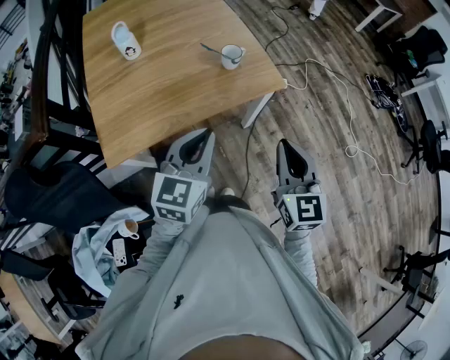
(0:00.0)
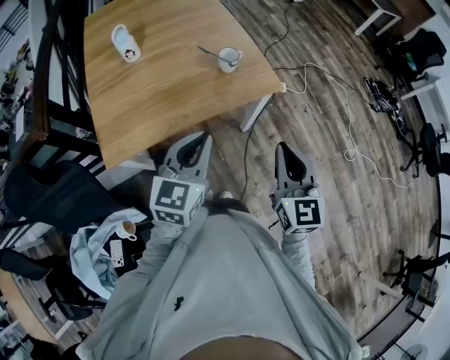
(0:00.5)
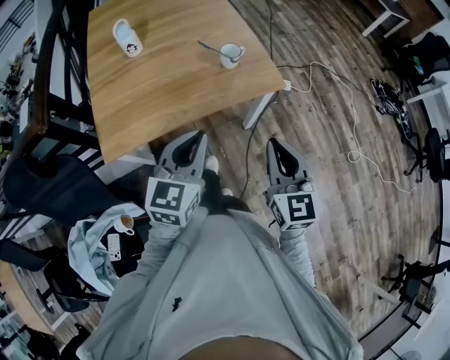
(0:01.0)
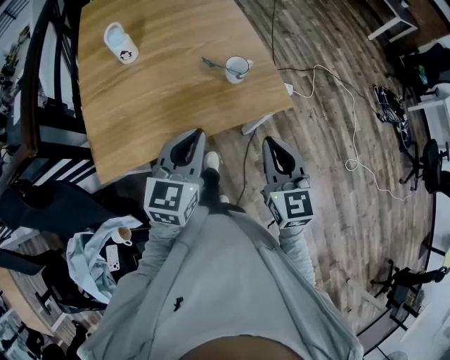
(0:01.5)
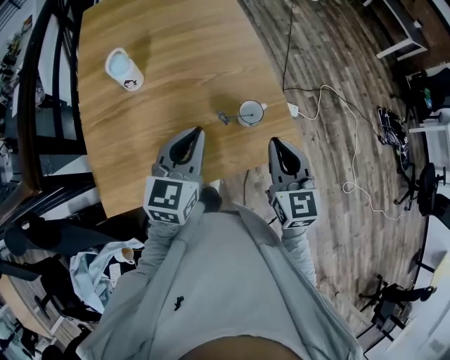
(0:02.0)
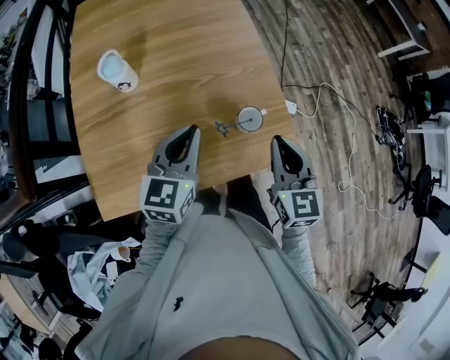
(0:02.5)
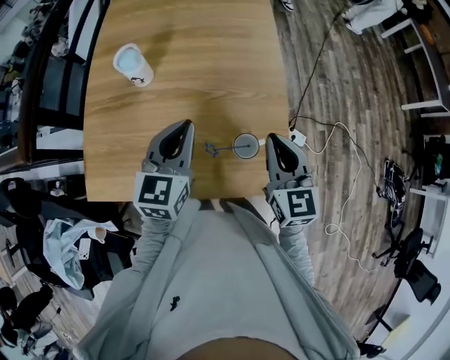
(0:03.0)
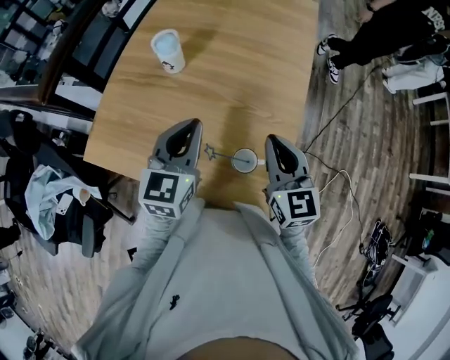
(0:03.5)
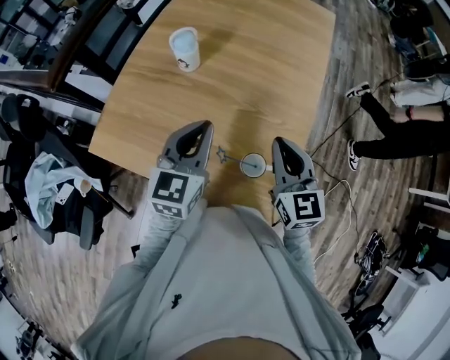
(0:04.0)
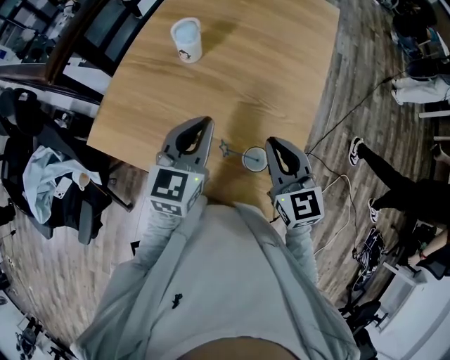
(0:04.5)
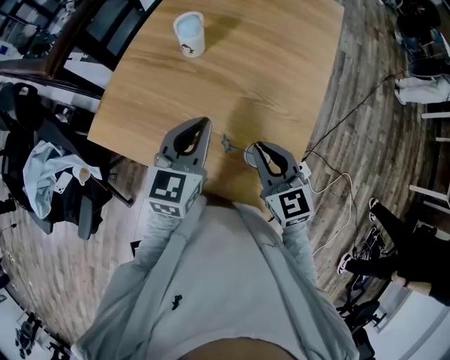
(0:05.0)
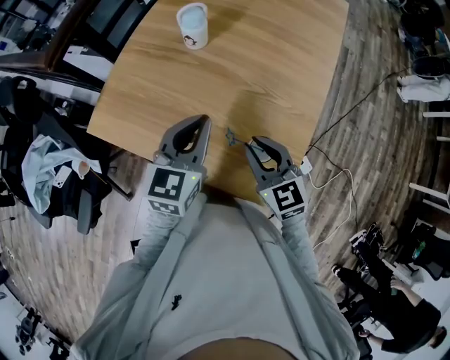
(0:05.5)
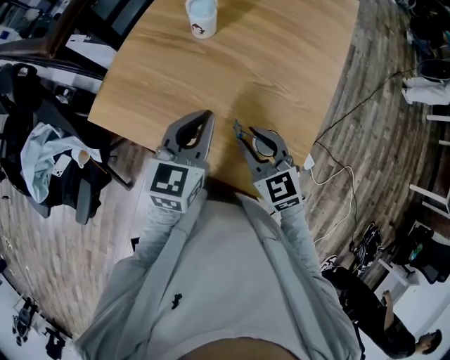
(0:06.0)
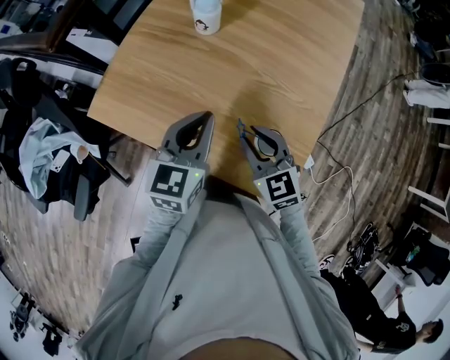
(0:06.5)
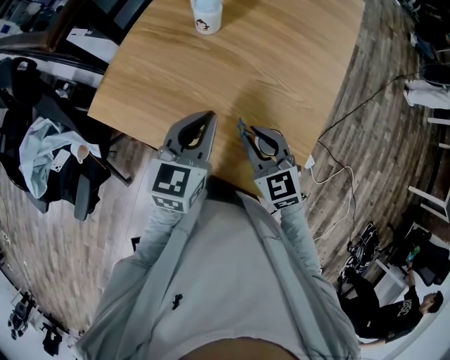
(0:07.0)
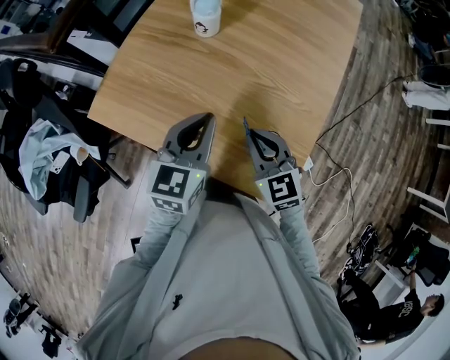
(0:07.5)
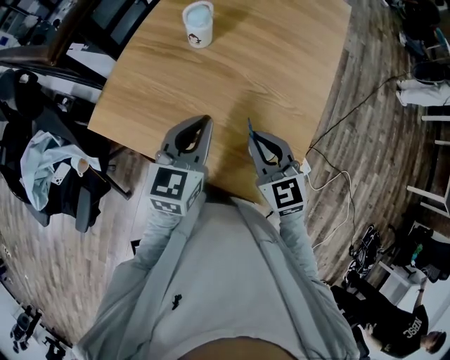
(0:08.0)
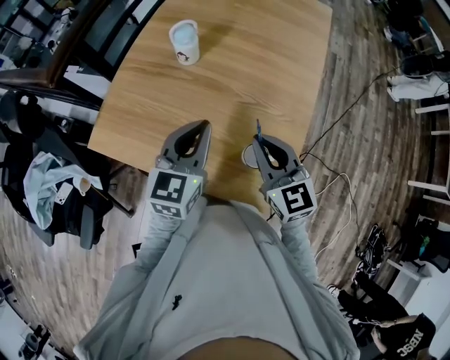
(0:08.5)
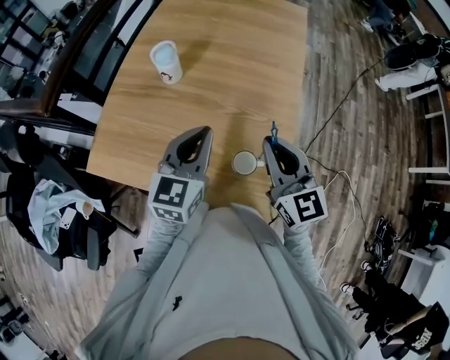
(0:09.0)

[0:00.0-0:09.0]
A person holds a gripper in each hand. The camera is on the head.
0:00.0 to 0:02.0: The two grippers go approximately 25 cm forward.
0:02.0 to 0:04.5: The left gripper changes place by approximately 5 cm, and swivels roughly 40 degrees; the right gripper changes place by roughly 15 cm, and changes its angle by approximately 50 degrees.
0:04.5 to 0:07.0: The left gripper moves roughly 5 cm. The right gripper shifts about 15 cm downward and to the left.
0:07.0 to 0:09.0: The right gripper travels upward and to the right by some 20 cm, and turns by roughly 30 degrees, while the left gripper heads to the right and upward, covering some 10 cm.

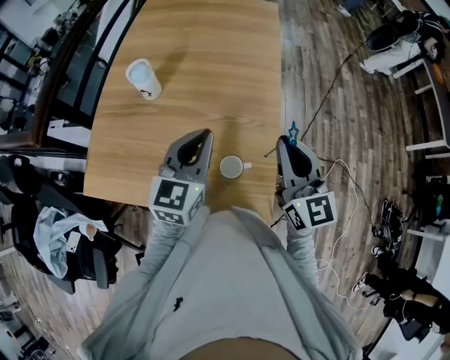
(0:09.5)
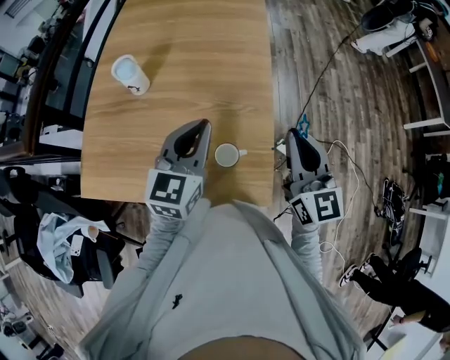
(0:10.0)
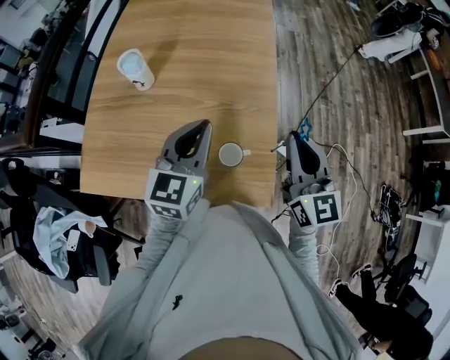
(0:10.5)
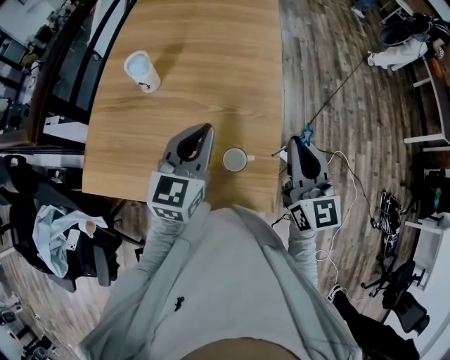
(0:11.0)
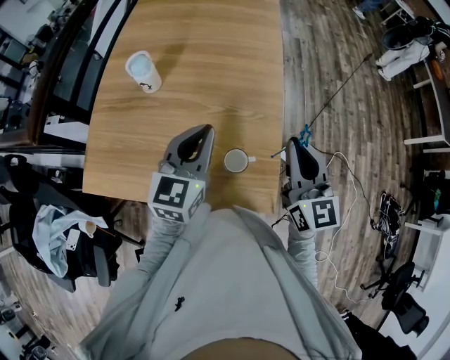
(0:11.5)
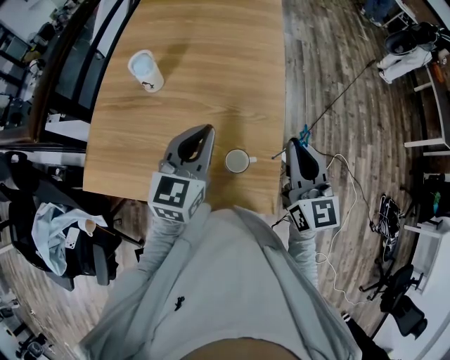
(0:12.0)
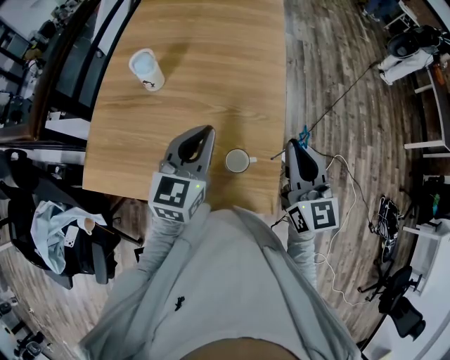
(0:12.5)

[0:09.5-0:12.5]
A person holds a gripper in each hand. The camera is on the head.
0:09.5 to 0:12.5: The grippers stay close to where they were, moving slightly.

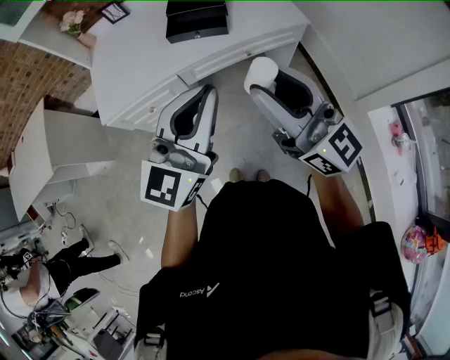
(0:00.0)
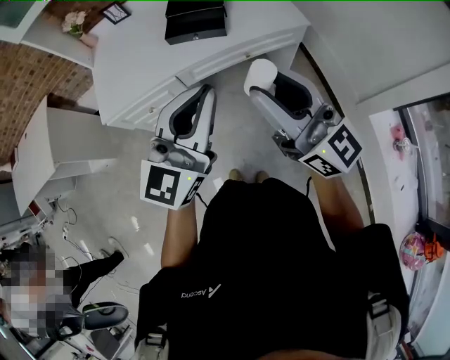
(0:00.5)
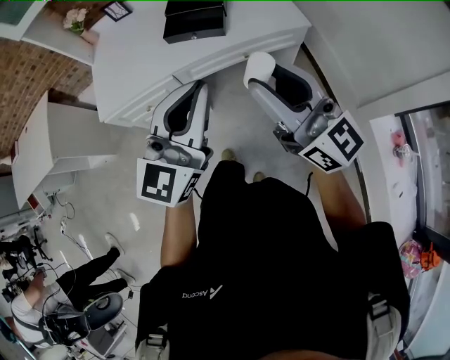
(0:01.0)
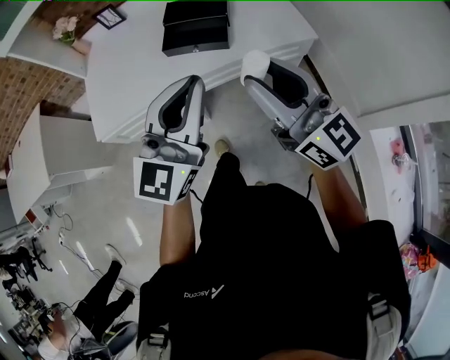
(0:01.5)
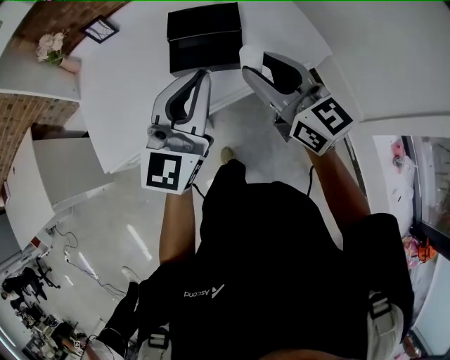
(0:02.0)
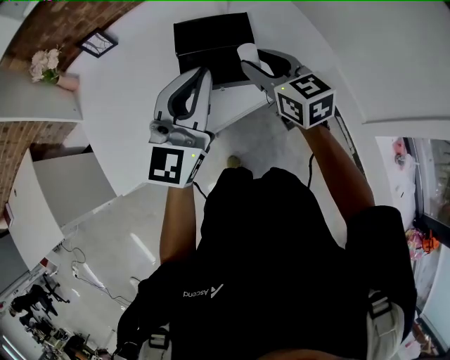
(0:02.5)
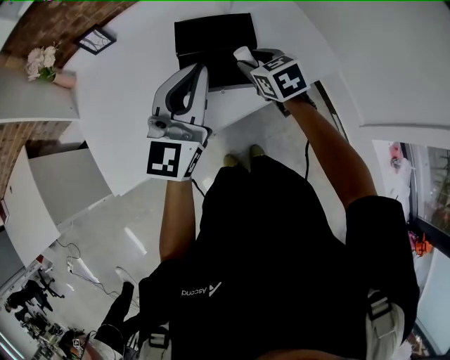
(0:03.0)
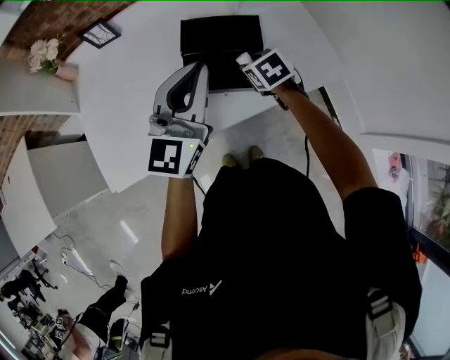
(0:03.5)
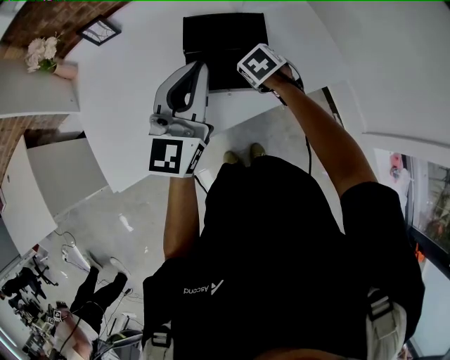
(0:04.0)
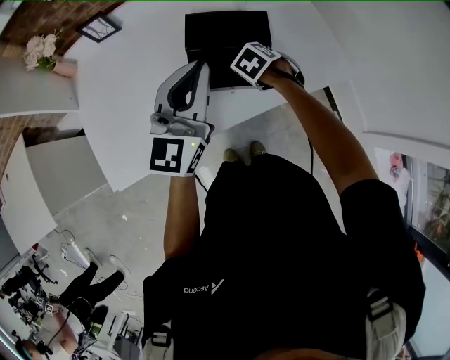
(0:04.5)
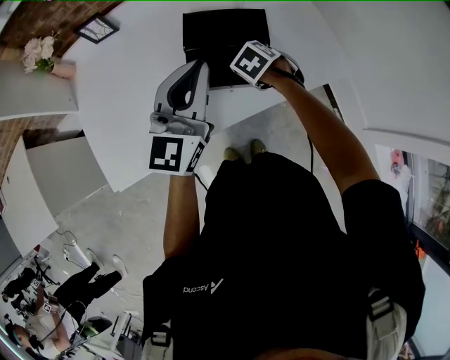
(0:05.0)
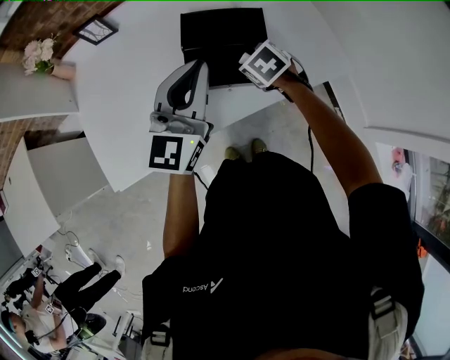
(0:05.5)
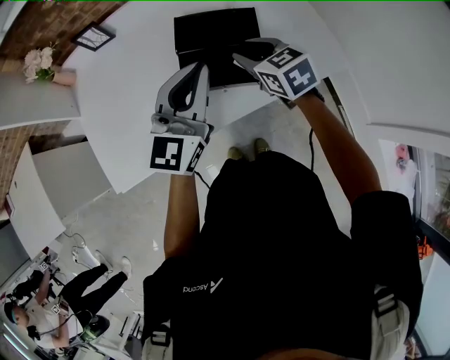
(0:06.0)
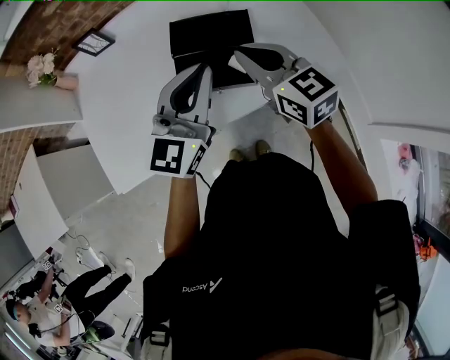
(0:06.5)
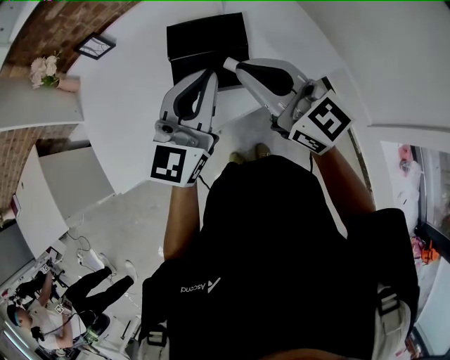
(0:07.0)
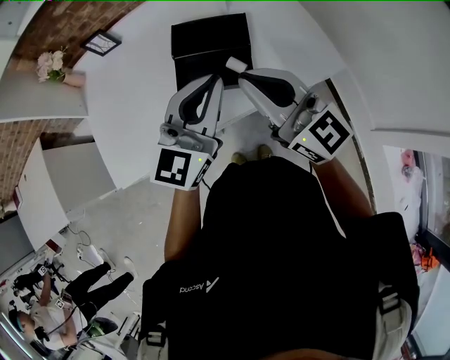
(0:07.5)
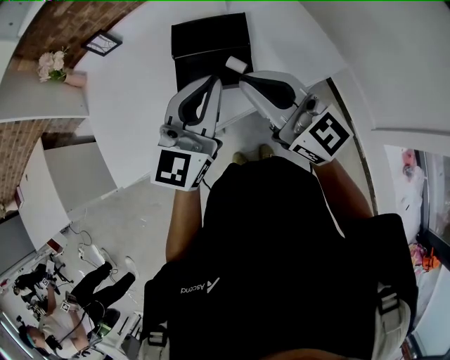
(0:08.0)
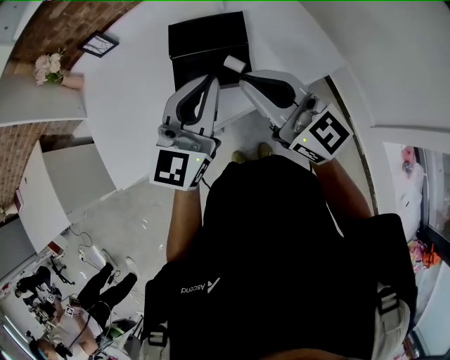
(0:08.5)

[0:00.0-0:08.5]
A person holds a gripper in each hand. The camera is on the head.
0:00.0 to 0:02.0: Both grippers move forward, approximately 30 cm. The right gripper swivels about 20 degrees.
0:02.0 to 0:04.0: The right gripper is displaced downward and forward by about 35 cm, and points its fingers about 70 degrees further downward. The left gripper goes roughly 15 cm forward and to the left.
0:04.0 to 0:06.5: The right gripper moves upward, roughly 20 cm, angles its fingers upward, by roughly 60 degrees, and closes. Meanwhile the left gripper shifts by approximately 5 cm.
0:06.5 to 0:08.5: The right gripper is displaced backward and upward by some 10 cm, and changes its angle by roughly 20 degrees; the left gripper changes place by approximately 5 cm.

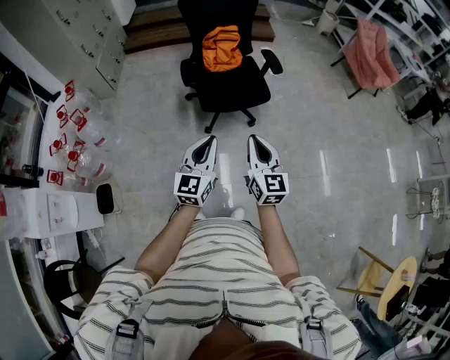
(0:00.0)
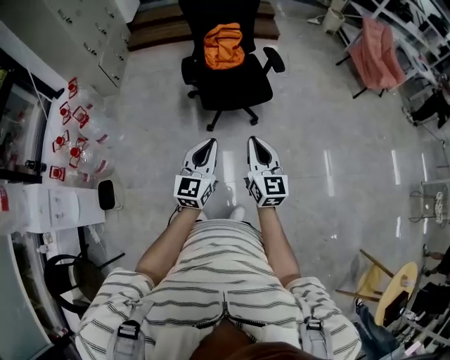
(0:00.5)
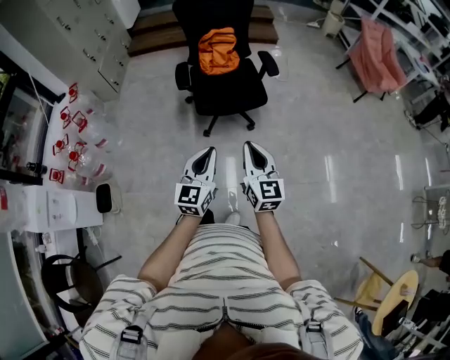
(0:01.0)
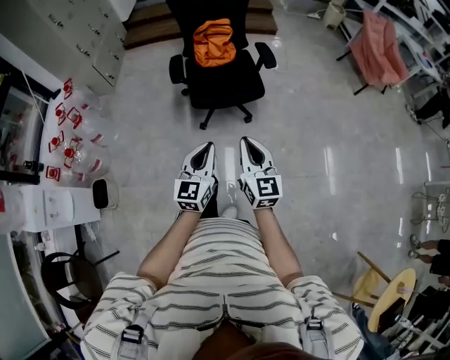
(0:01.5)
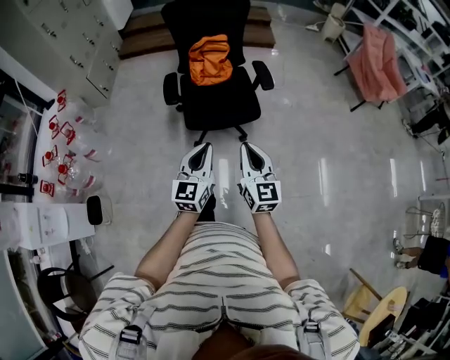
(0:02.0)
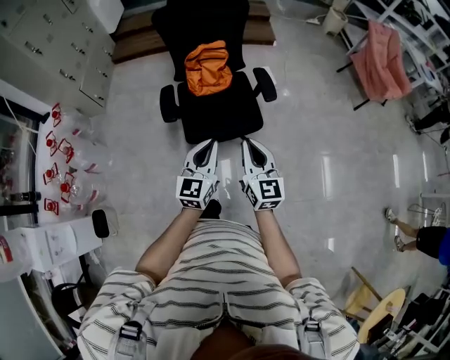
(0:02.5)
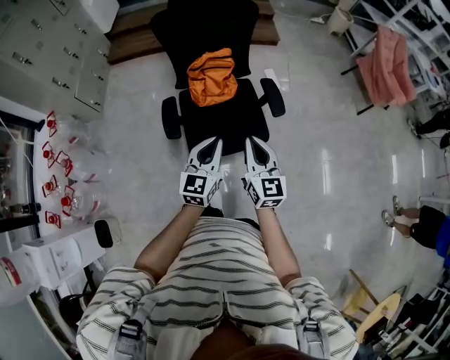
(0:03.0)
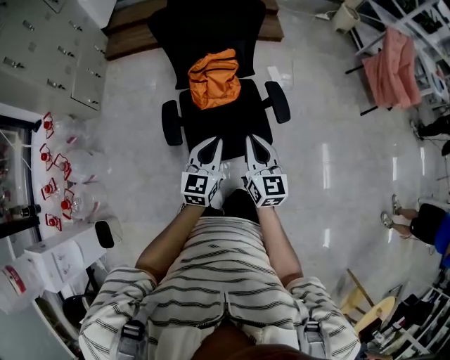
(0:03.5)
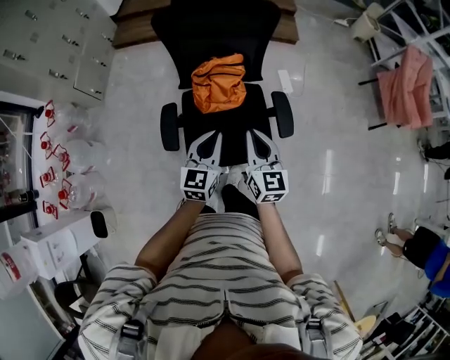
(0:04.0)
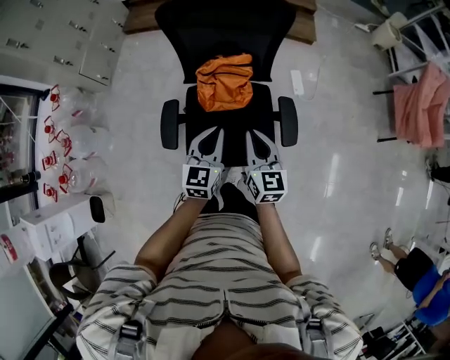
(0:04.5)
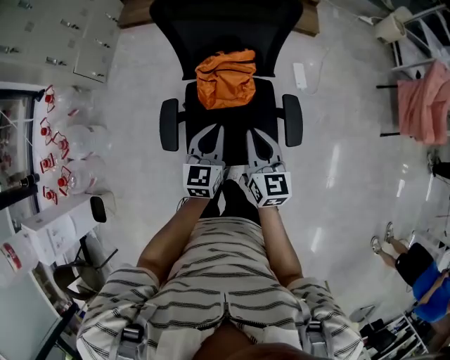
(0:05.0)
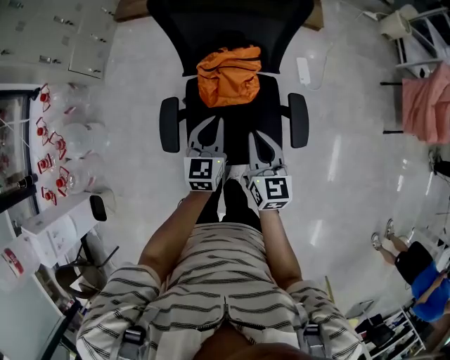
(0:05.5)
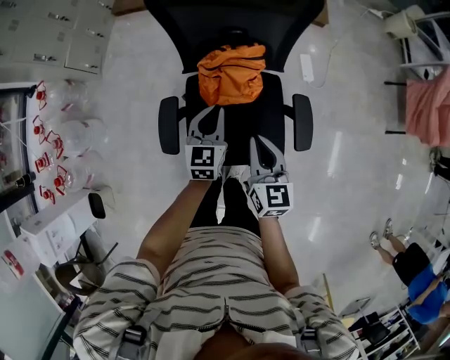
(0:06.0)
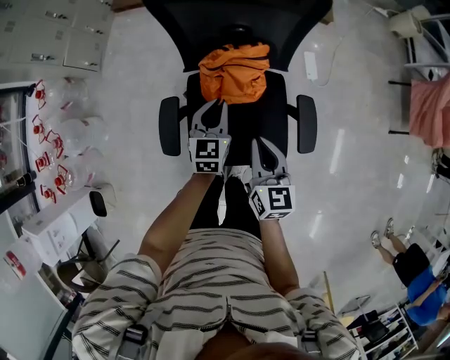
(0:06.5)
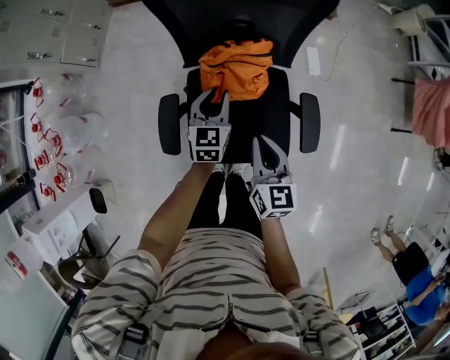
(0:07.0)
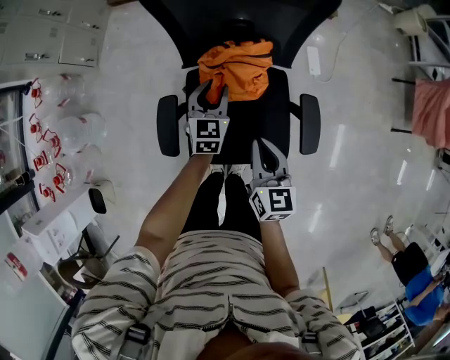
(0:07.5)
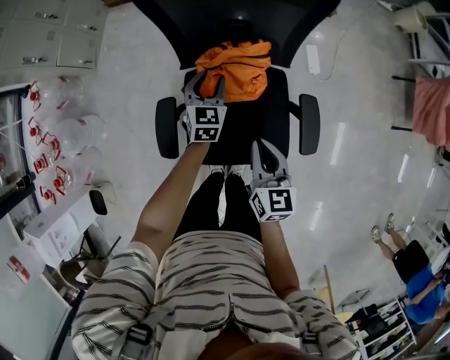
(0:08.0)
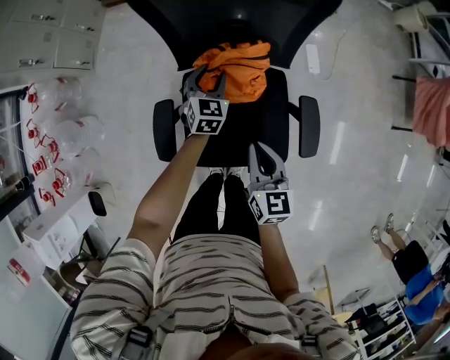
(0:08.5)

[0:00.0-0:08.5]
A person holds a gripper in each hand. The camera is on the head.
0:00.0 to 0:02.0: The grippers both shift forward and to the right by approximately 15 cm.
0:02.0 to 0:04.0: Both grippers are carried forward, roughly 40 cm.
0:04.0 to 0:06.5: The left gripper shifts about 25 cm forward and downward; the right gripper moves forward and downward, roughly 15 cm.
0:06.5 to 0:08.5: The left gripper shifts approximately 15 cm forward and downward, and opens.
